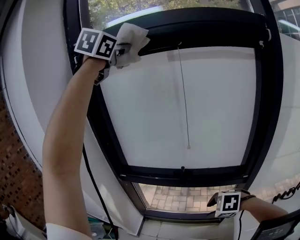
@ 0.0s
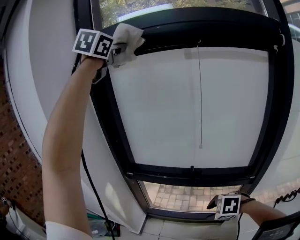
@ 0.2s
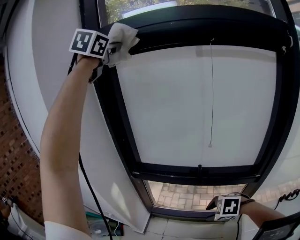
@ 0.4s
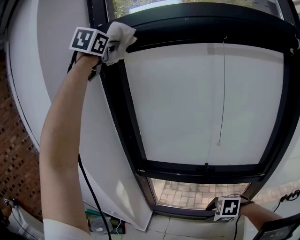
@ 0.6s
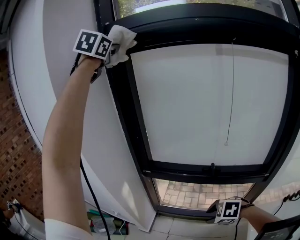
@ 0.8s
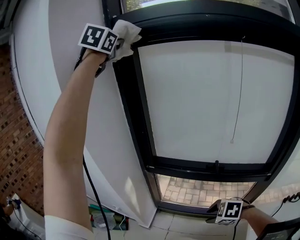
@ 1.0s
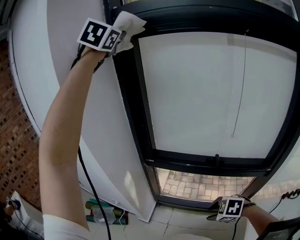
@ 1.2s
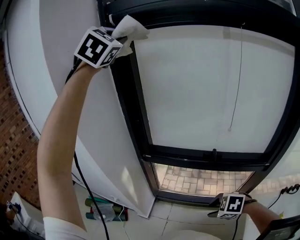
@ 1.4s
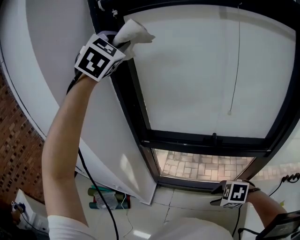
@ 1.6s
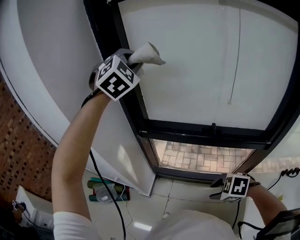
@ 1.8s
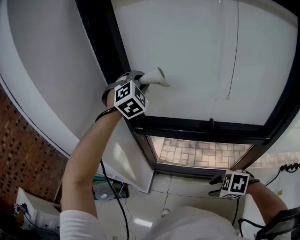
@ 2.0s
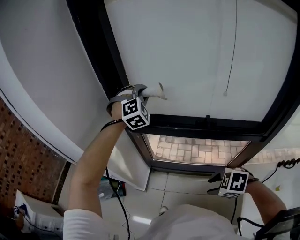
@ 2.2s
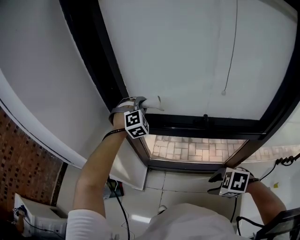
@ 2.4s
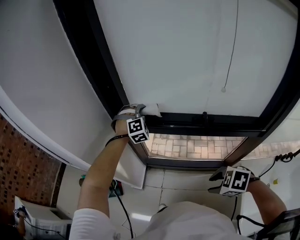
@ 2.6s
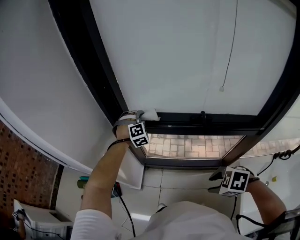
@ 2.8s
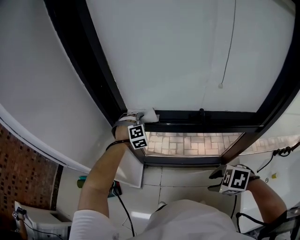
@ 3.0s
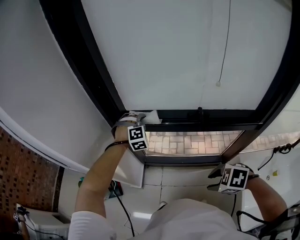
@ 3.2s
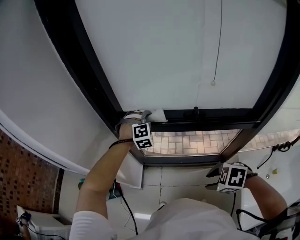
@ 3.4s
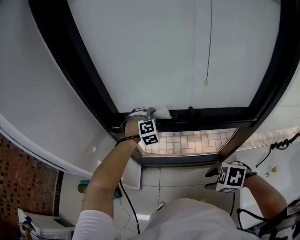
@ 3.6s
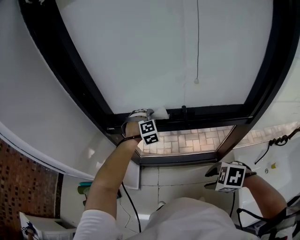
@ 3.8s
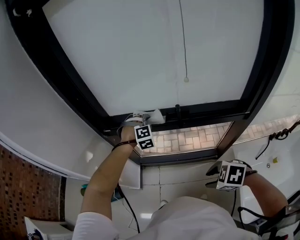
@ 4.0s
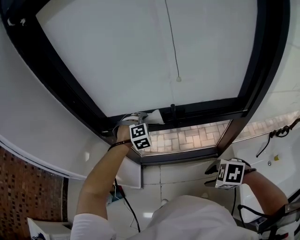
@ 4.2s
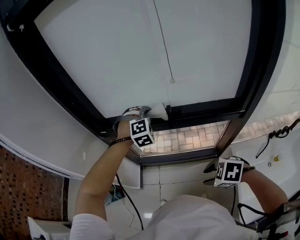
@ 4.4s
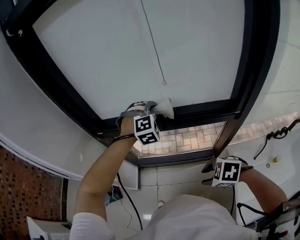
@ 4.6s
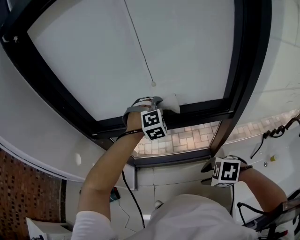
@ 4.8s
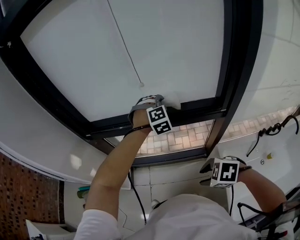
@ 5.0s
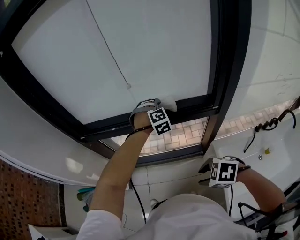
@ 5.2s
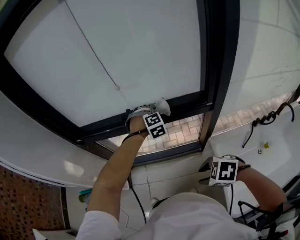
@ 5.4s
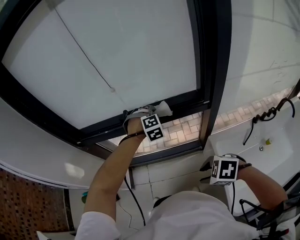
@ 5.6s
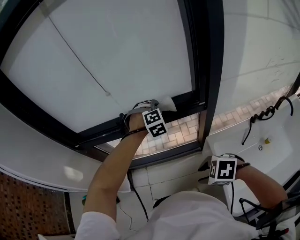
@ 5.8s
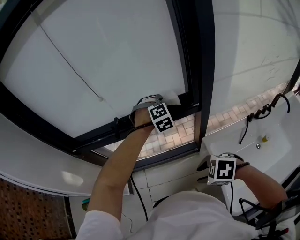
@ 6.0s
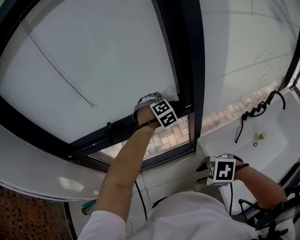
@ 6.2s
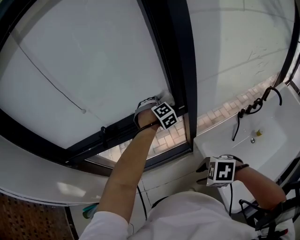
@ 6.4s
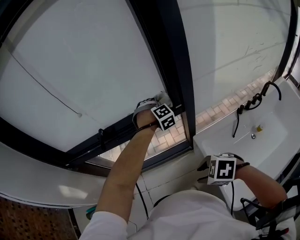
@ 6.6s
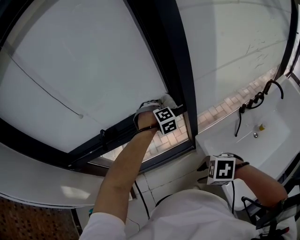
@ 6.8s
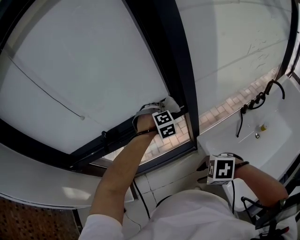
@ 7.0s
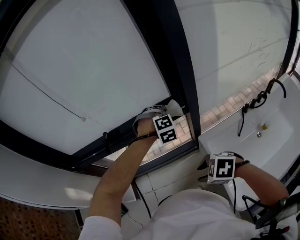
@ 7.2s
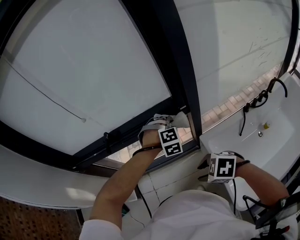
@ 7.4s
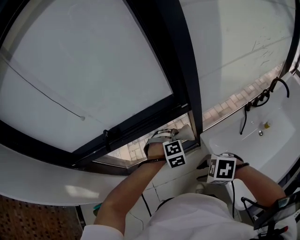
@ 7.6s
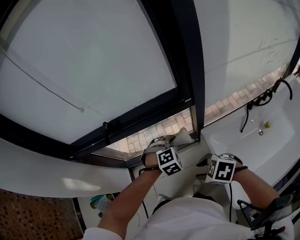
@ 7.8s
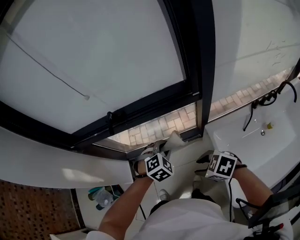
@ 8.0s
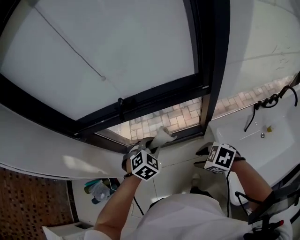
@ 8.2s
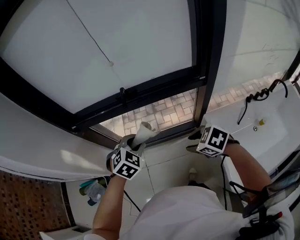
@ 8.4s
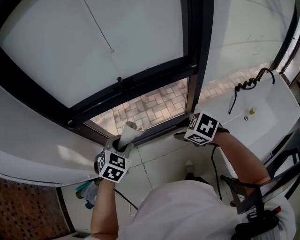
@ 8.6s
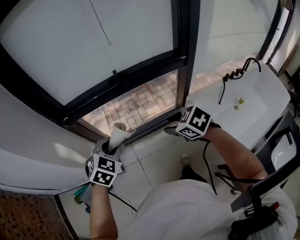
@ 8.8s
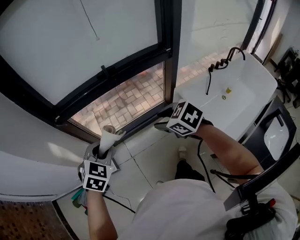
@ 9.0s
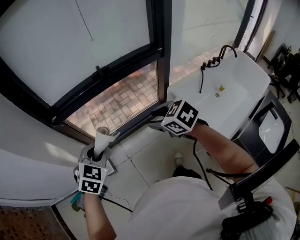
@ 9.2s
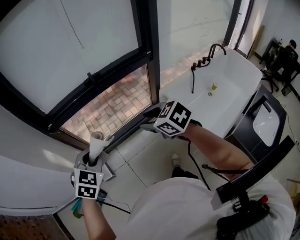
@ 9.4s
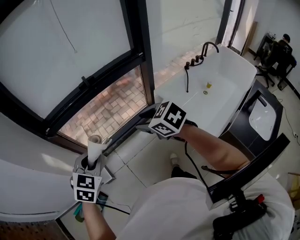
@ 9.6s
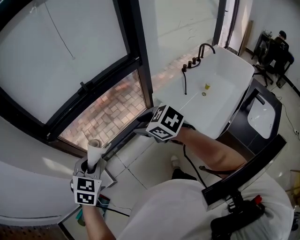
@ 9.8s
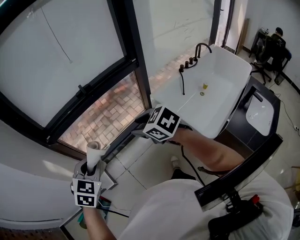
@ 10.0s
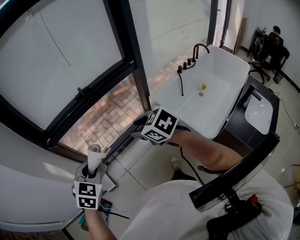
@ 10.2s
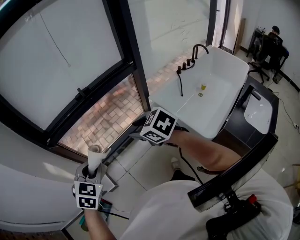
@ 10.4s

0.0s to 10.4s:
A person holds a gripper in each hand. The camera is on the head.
0.0s to 1.4s: The left gripper shifts some 20 cm to the left and forward, and changes its angle by some 30 degrees; the right gripper travels to the left by some 15 cm.
1.4s to 3.0s: The left gripper travels downward by approximately 60 cm, and points its fingers approximately 30 degrees further downward.
3.0s to 4.4s: The right gripper goes about 5 cm backward. The left gripper heads backward, to the right and upward, covering about 20 cm.
4.4s to 6.0s: The right gripper is displaced backward and to the right by about 15 cm; the left gripper goes roughly 30 cm to the right and backward.
6.0s to 7.4s: The left gripper travels backward and downward by approximately 15 cm.
7.4s to 9.0s: The left gripper shifts by roughly 50 cm, and twists some 50 degrees counterclockwise, seen from behind; the right gripper ends up approximately 25 cm from where it was, and changes its angle by about 30 degrees.
9.0s to 10.4s: Both grippers move backward, approximately 5 cm.

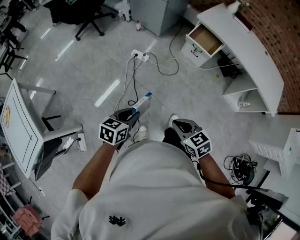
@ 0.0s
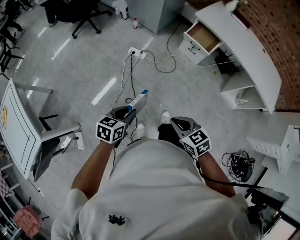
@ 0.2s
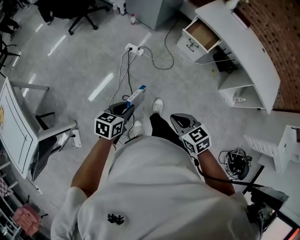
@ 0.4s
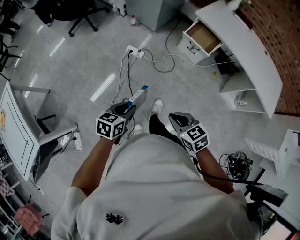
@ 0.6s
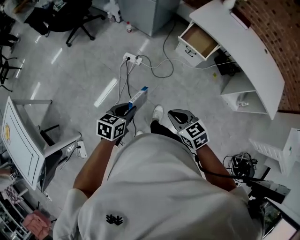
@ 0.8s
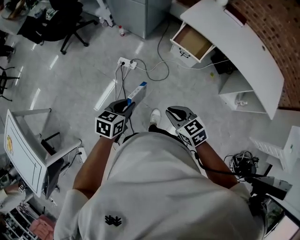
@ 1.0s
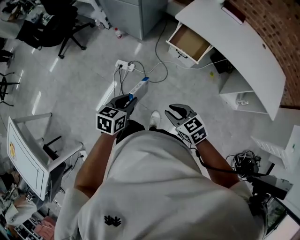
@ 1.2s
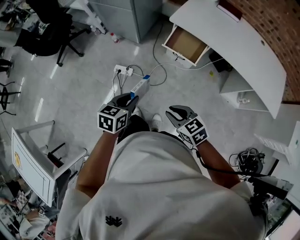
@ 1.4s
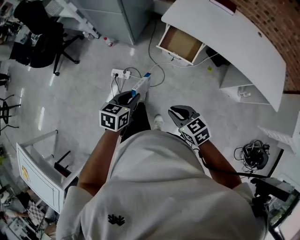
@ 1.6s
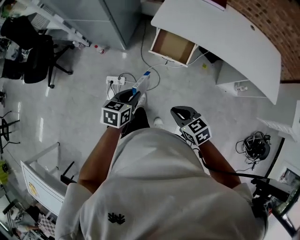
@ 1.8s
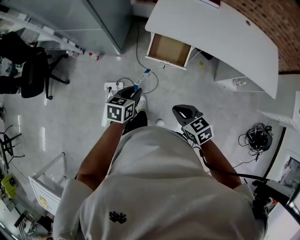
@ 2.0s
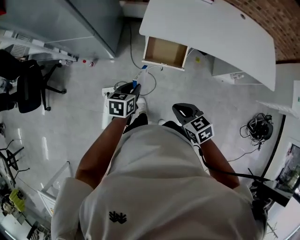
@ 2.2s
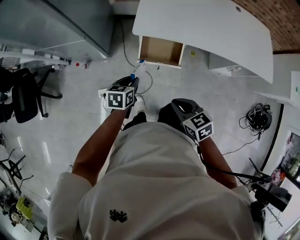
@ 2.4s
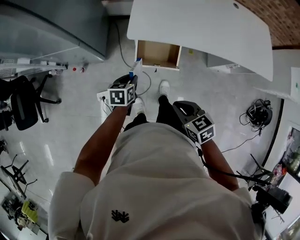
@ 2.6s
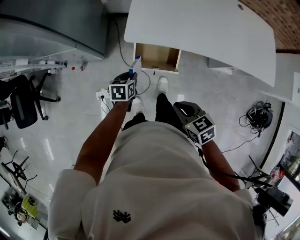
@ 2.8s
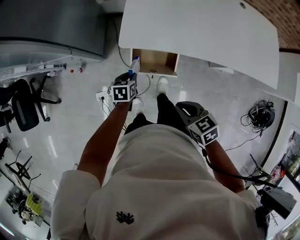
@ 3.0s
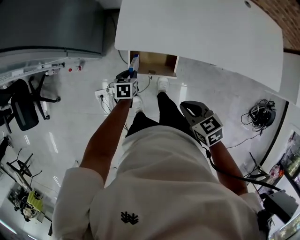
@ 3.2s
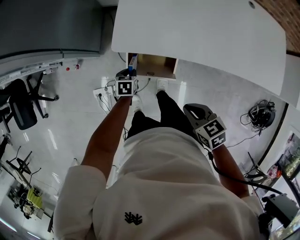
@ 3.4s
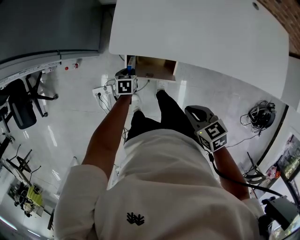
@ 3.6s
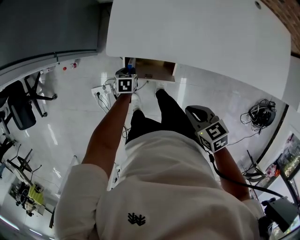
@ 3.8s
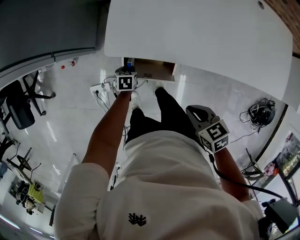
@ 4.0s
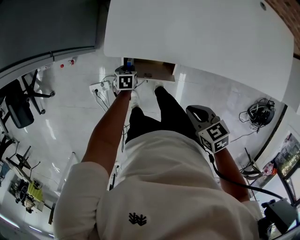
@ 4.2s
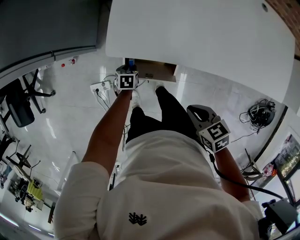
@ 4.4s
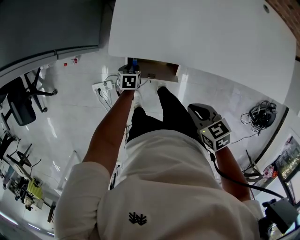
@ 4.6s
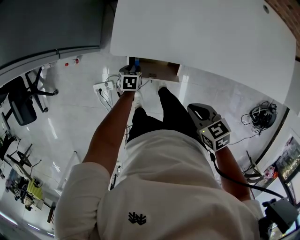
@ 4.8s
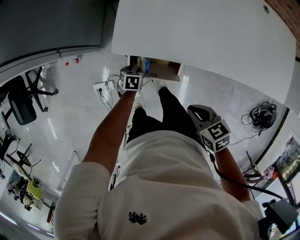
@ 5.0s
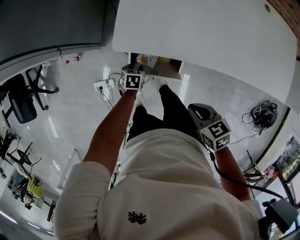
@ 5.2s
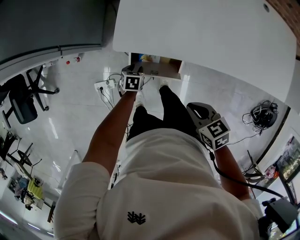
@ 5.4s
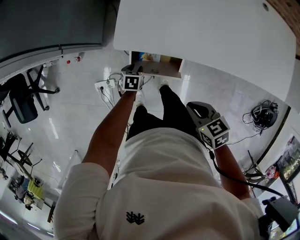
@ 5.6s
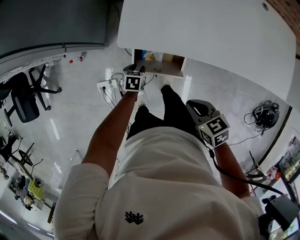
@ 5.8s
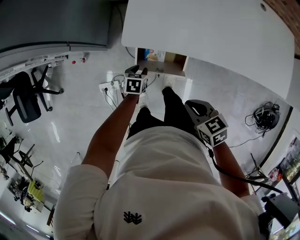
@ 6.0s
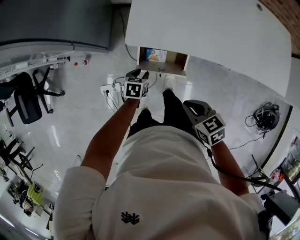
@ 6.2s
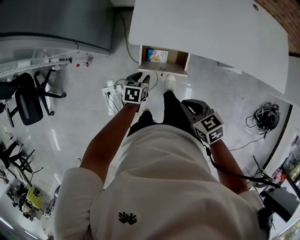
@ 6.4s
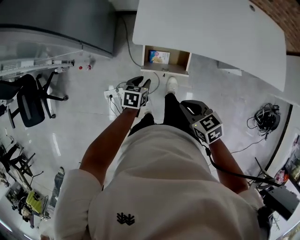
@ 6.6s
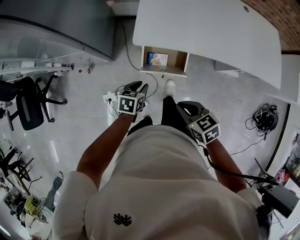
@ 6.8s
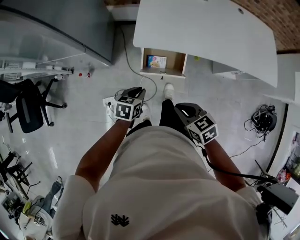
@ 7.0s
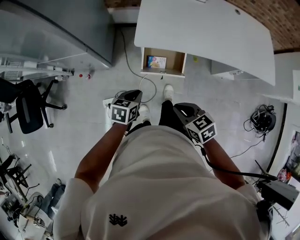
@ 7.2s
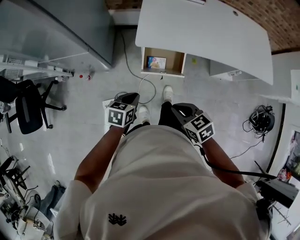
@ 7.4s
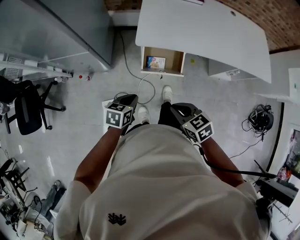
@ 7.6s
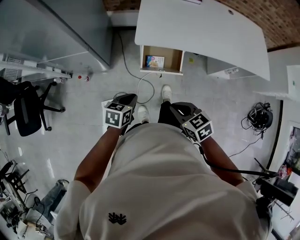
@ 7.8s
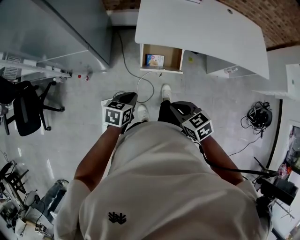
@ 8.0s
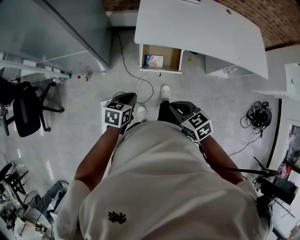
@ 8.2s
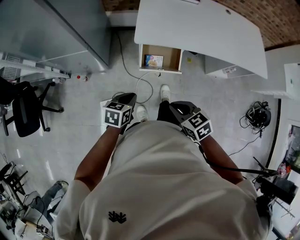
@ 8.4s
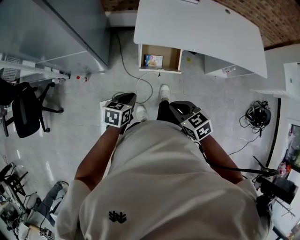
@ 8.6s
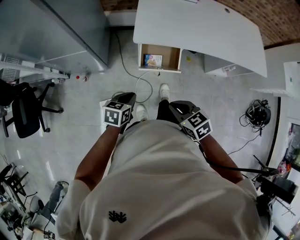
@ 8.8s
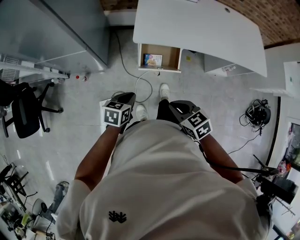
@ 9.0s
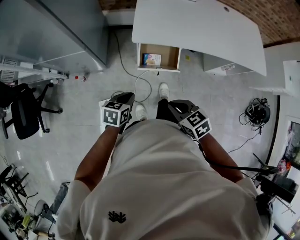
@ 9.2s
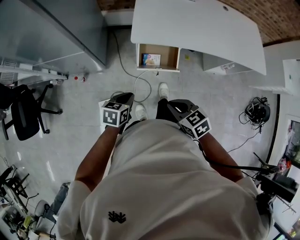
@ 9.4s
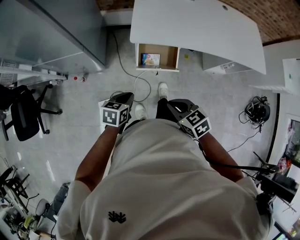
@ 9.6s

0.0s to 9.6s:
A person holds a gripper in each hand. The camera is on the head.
0.0s to 1.6s: The pair of grippers is taken forward and to the right, about 50 cm.
1.6s to 3.2s: The right gripper travels forward by roughly 35 cm, and changes its angle by approximately 30 degrees. Meanwhile the left gripper heads forward and downward, covering some 50 cm.
3.2s to 4.8s: The left gripper is displaced downward by some 10 cm. Meanwhile the right gripper ends up roughly 5 cm from where it was.
4.8s to 6.4s: The left gripper heads upward and backward, covering some 15 cm. The right gripper shifts some 5 cm to the left.
6.4s to 8.0s: The left gripper travels backward, upward and to the left by about 25 cm, and closes up. Meanwhile the right gripper heads backward, to the left and upward, covering some 20 cm.
8.0s to 9.6s: Both grippers stay put.

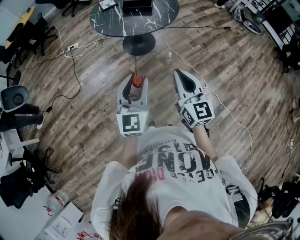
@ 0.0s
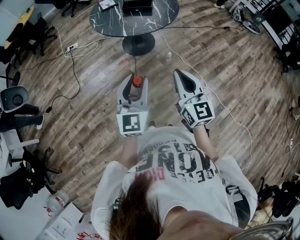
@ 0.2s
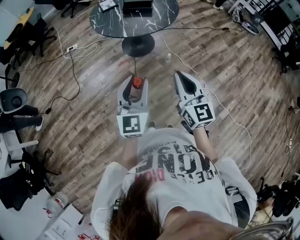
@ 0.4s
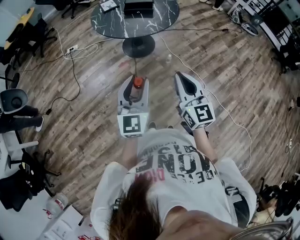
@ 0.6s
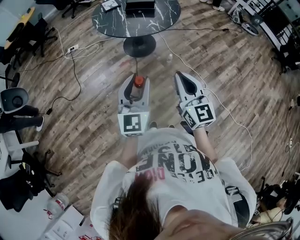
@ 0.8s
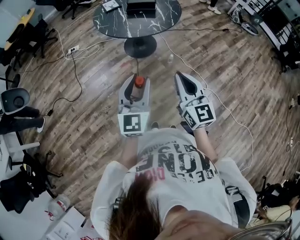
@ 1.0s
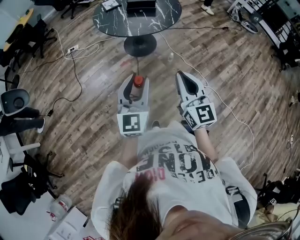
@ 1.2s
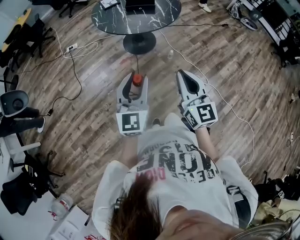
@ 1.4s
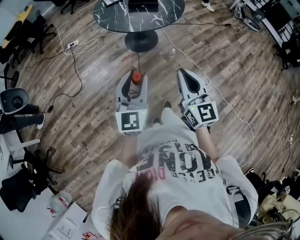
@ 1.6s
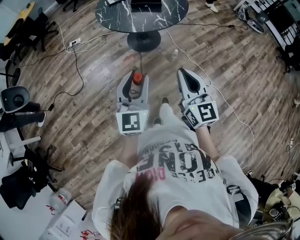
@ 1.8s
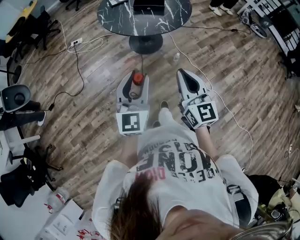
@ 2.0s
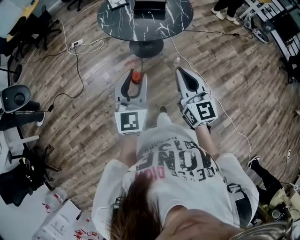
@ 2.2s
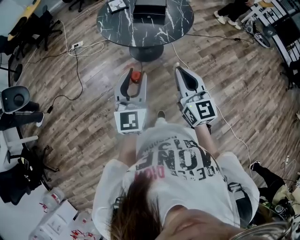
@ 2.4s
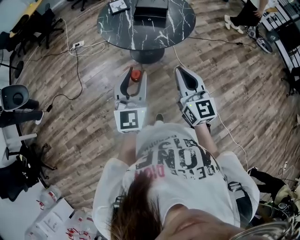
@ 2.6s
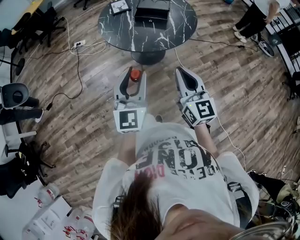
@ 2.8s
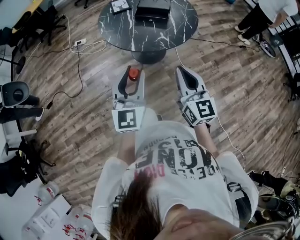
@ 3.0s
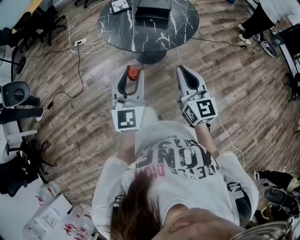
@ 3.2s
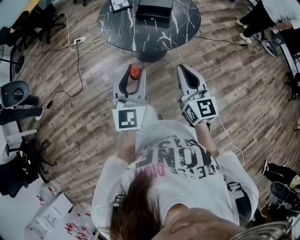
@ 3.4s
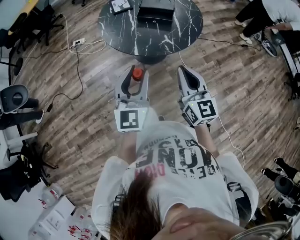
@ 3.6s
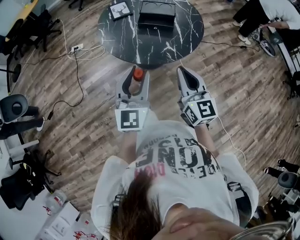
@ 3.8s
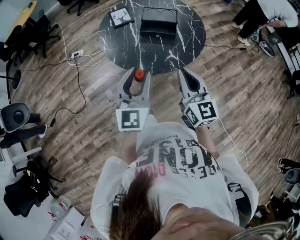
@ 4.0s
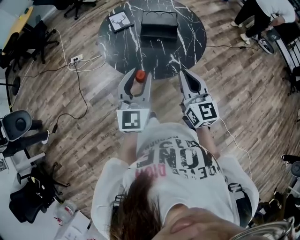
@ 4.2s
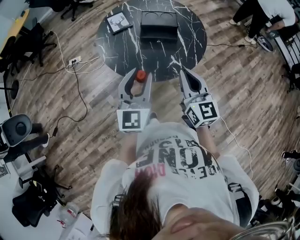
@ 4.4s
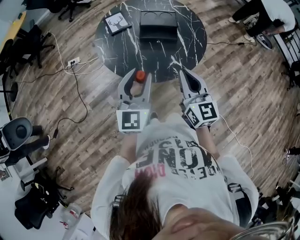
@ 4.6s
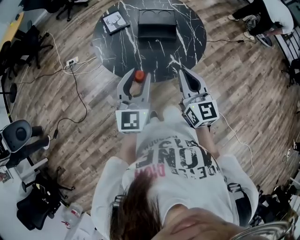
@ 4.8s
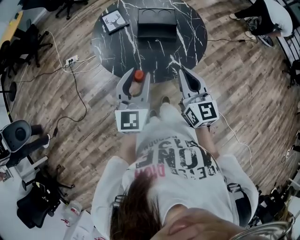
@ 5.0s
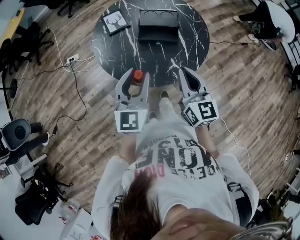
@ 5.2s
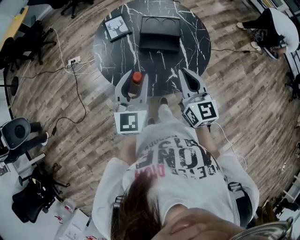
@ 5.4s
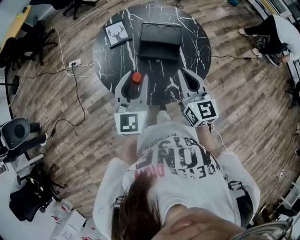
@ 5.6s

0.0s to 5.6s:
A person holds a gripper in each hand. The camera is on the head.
0.0s to 1.4s: The grippers both shift to the left by roughly 5 cm.
1.4s to 2.8s: Both grippers travel together forward, about 20 cm.
2.8s to 4.2s: The two grippers go about 20 cm forward.
4.2s to 5.6s: The grippers both shift forward by roughly 15 cm.
